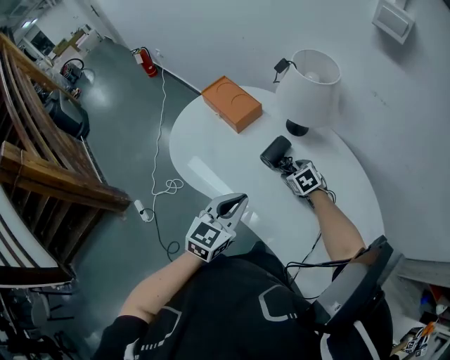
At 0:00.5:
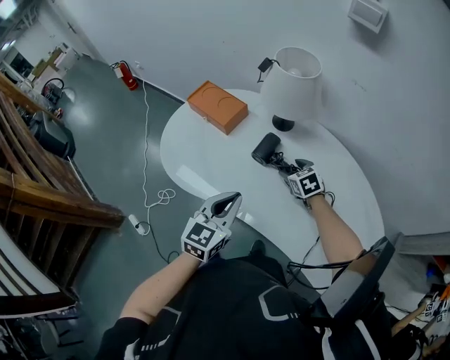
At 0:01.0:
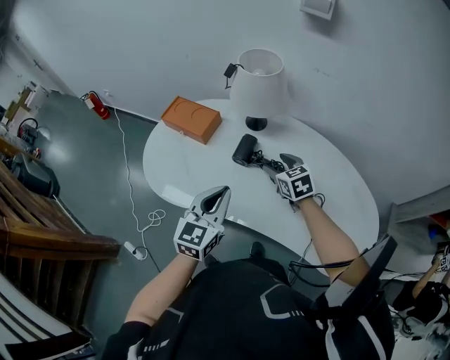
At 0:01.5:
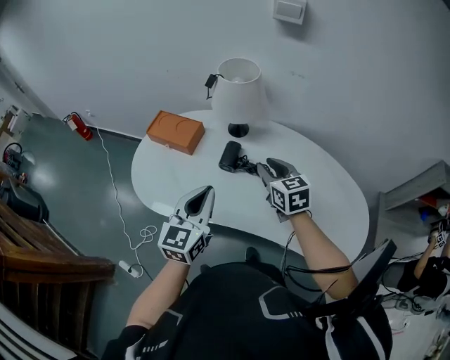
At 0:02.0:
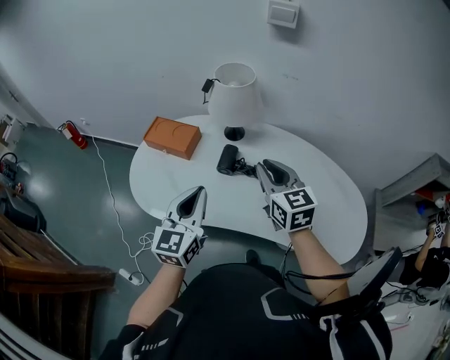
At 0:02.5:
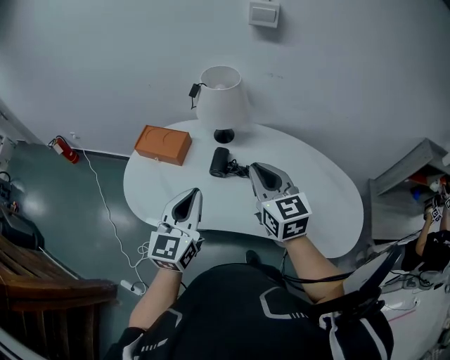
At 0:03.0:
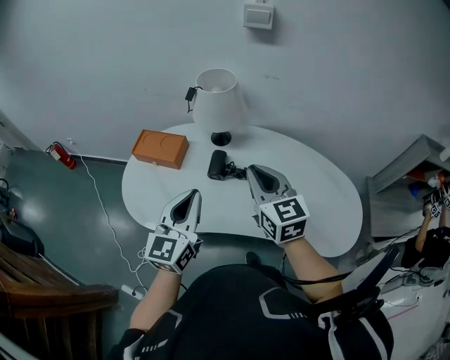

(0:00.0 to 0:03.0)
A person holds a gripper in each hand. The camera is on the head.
0:00.0 - 0:01.5: The left gripper heads upward, covering some 10 cm. Meanwhile the right gripper goes some 25 cm upward, points its fingers some 30 degrees further upward, and closes.
0:01.5 - 0:03.0: The right gripper travels upward and backward by roughly 15 cm.

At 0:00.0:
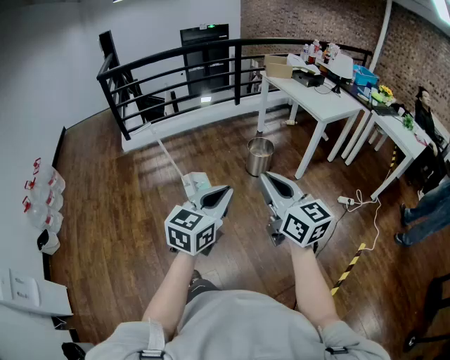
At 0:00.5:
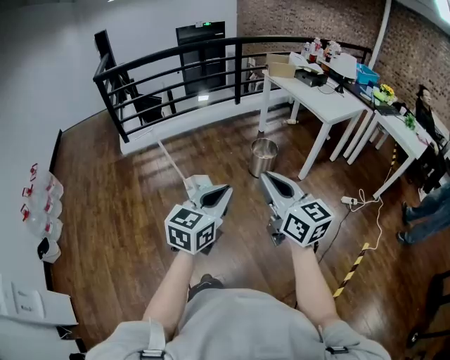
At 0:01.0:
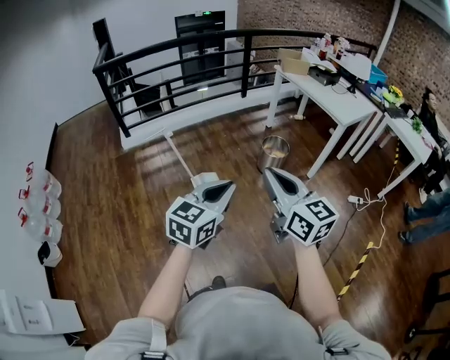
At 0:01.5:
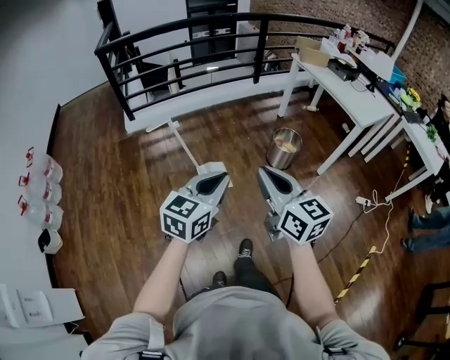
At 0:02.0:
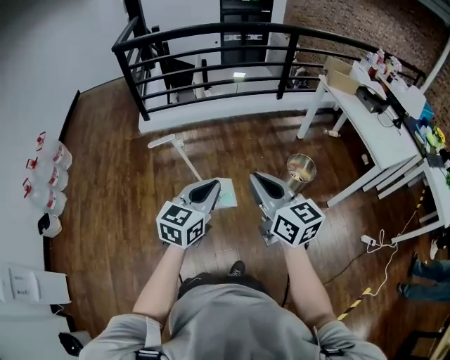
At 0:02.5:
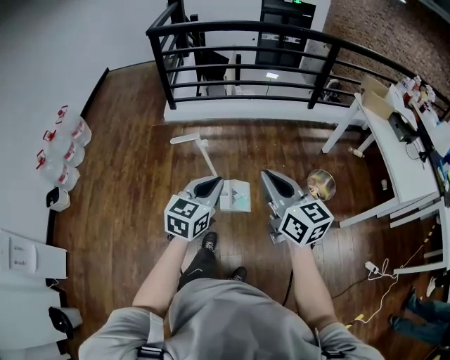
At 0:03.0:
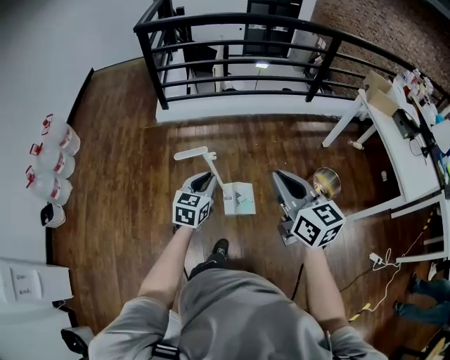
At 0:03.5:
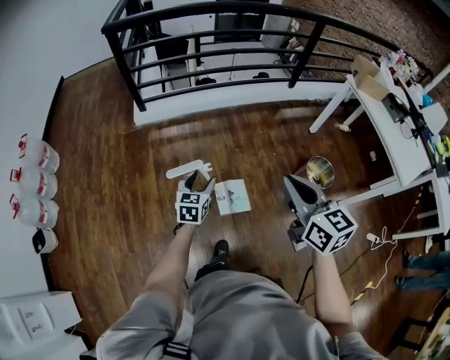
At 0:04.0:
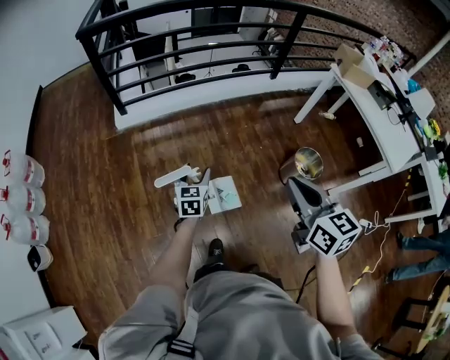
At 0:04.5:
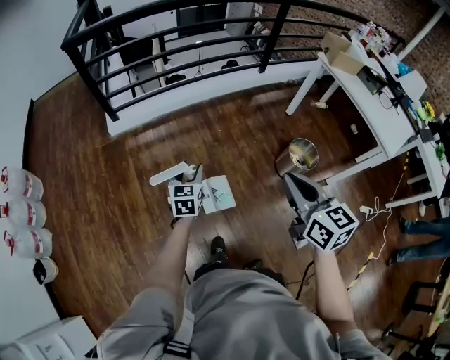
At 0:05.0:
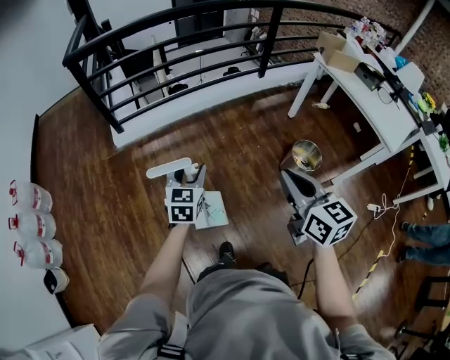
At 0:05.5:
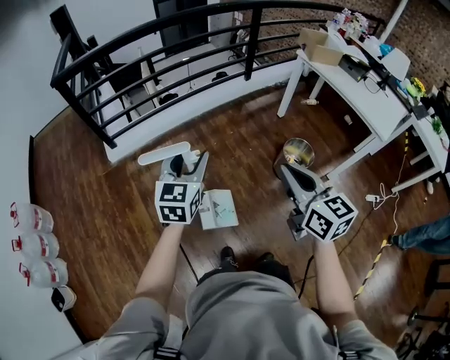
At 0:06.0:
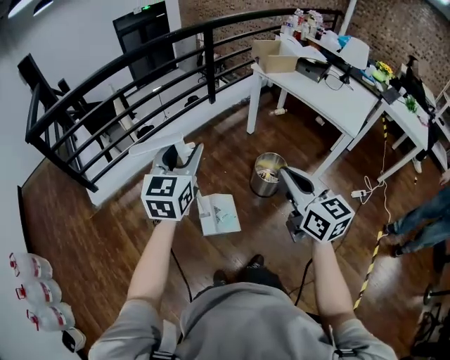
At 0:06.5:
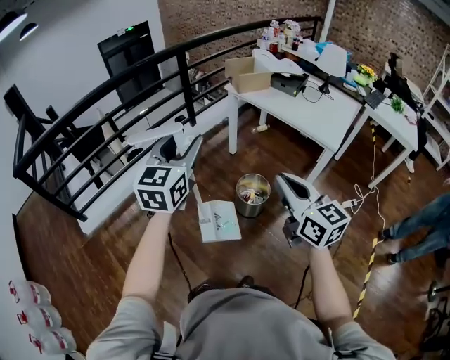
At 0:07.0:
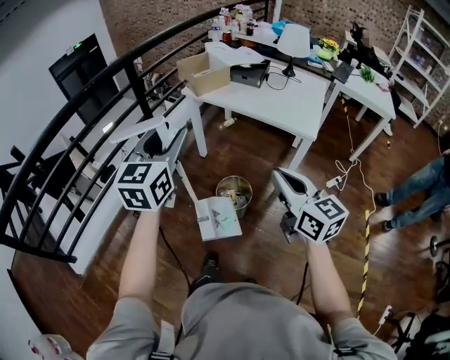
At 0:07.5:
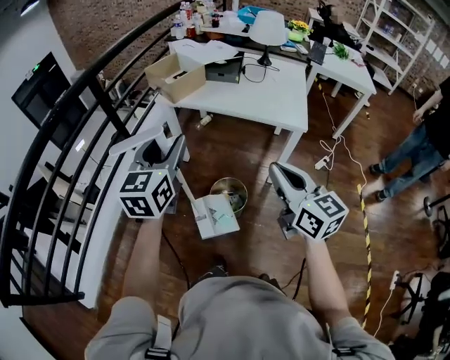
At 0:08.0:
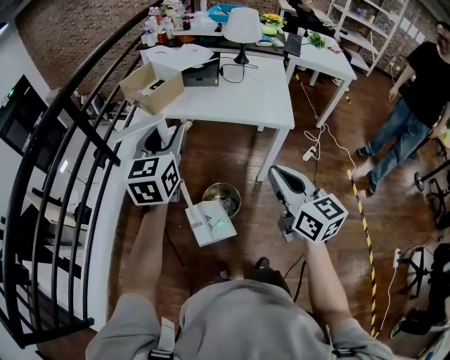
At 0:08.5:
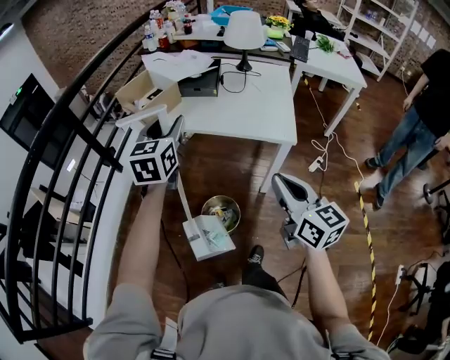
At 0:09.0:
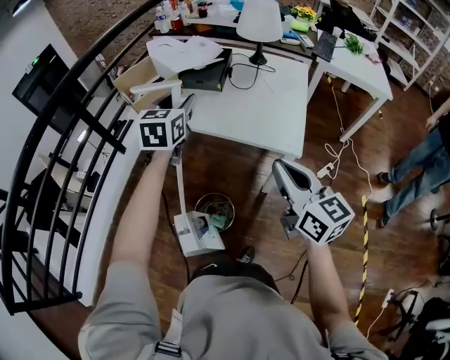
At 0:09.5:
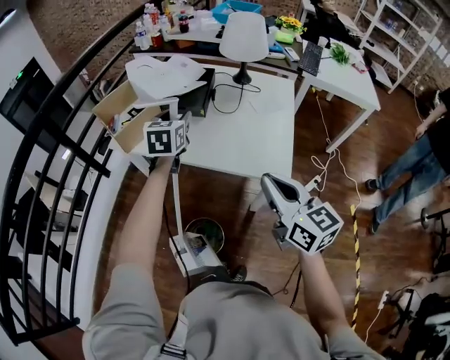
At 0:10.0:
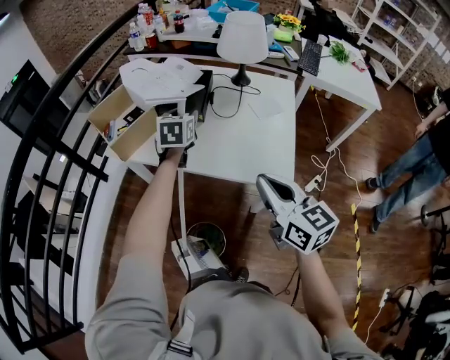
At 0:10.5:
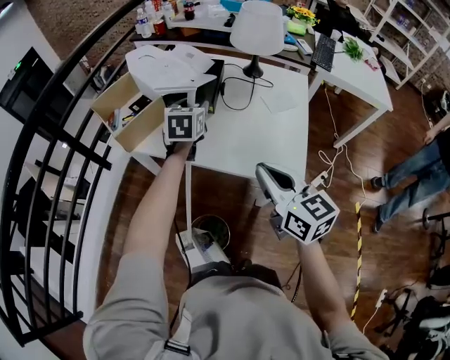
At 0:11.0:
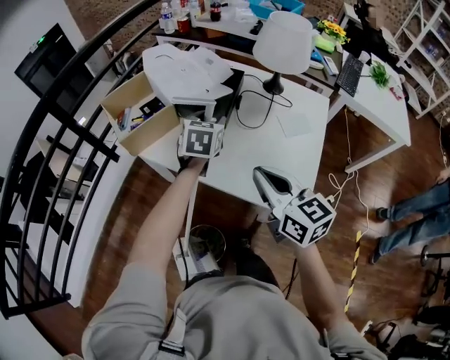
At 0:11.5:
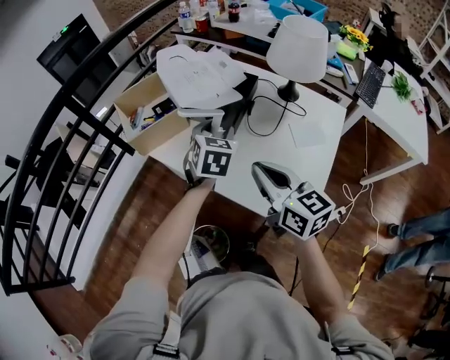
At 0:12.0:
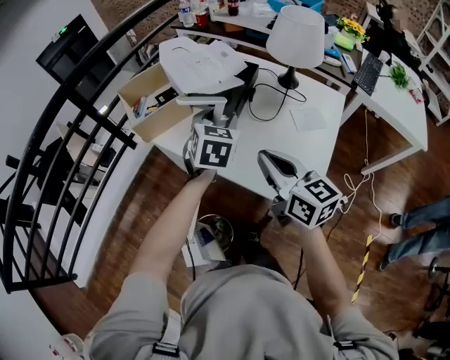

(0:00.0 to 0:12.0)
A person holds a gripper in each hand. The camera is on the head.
0:00.0 - 0:02.0: The two grippers travel together, forward and to the left, roughly 40 cm.
0:02.0 - 0:04.0: The right gripper moves forward, roughly 20 cm, and swivels roughly 20 degrees; the left gripper travels forward, downward and to the left by about 40 cm, changes its angle by approximately 20 degrees, and opens up.
0:04.0 - 0:06.0: The right gripper is displaced to the right by approximately 20 cm, and turns by roughly 20 degrees, while the left gripper moves upward and to the right, approximately 40 cm, and rotates about 40 degrees.
0:06.0 - 0:08.0: The right gripper shifts by roughly 30 cm, and swivels roughly 40 degrees, while the left gripper shifts by about 50 cm, and turns by about 30 degrees.
0:08.0 - 0:10.0: Both grippers travel together forward and to the right, about 40 cm. The left gripper turns by about 20 degrees.
0:10.0 - 0:12.0: The right gripper heads forward, covering about 15 cm.

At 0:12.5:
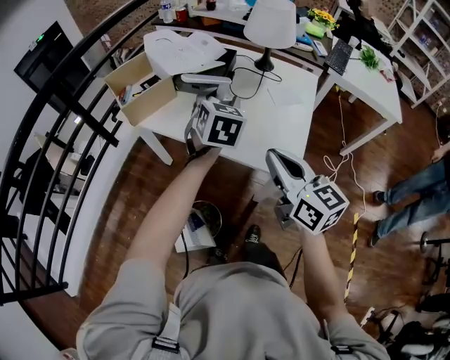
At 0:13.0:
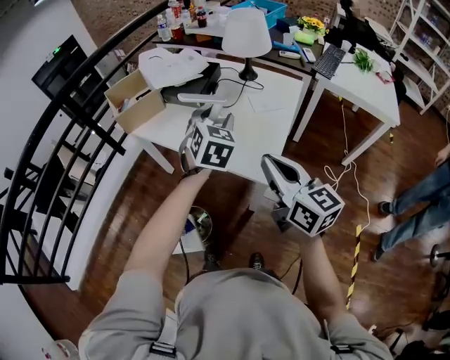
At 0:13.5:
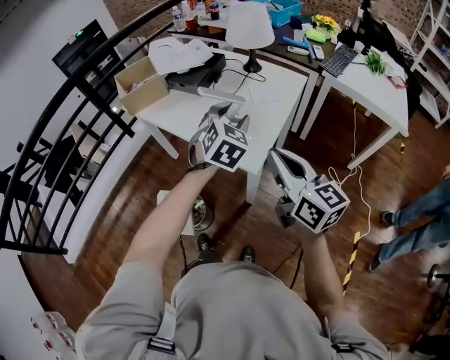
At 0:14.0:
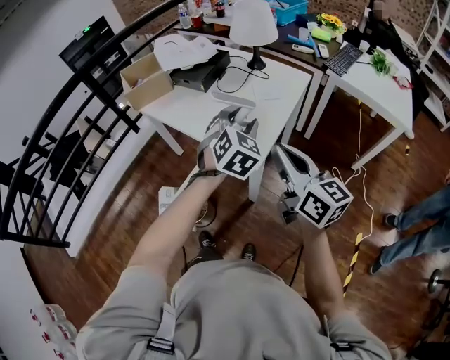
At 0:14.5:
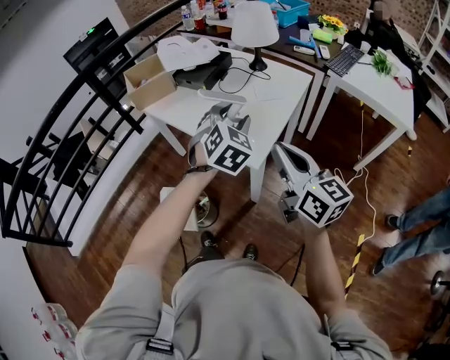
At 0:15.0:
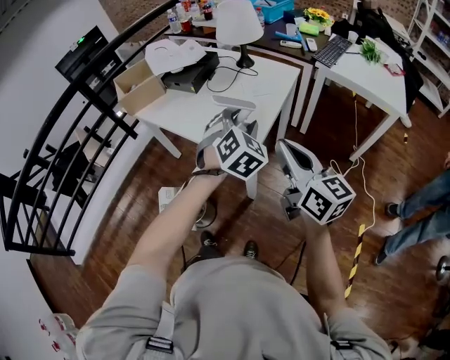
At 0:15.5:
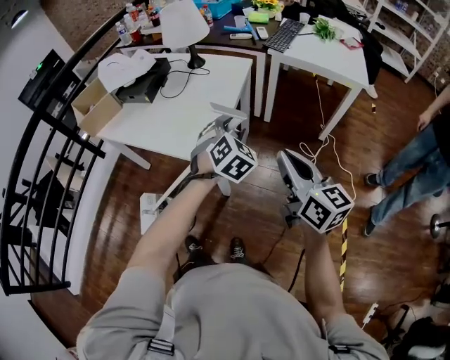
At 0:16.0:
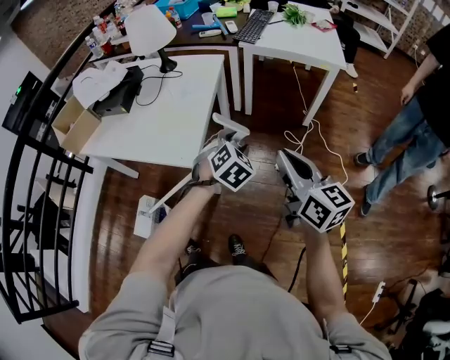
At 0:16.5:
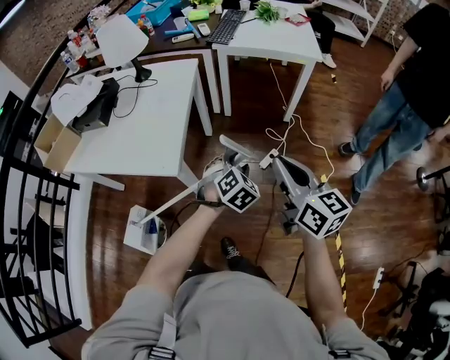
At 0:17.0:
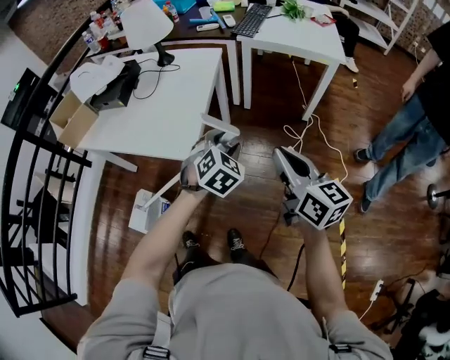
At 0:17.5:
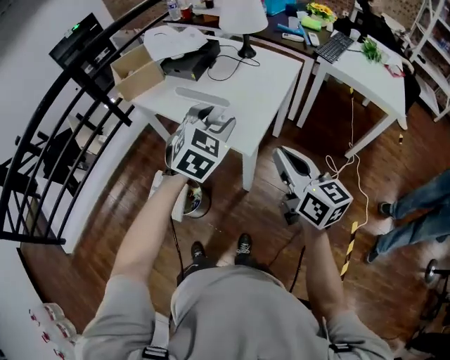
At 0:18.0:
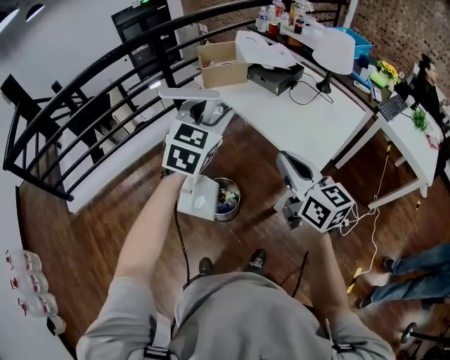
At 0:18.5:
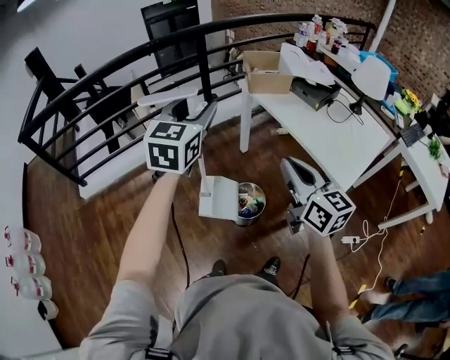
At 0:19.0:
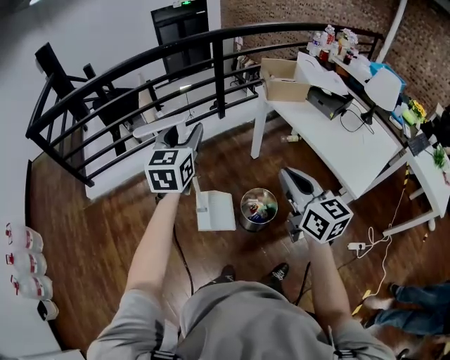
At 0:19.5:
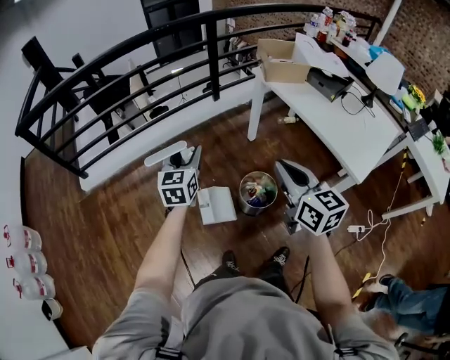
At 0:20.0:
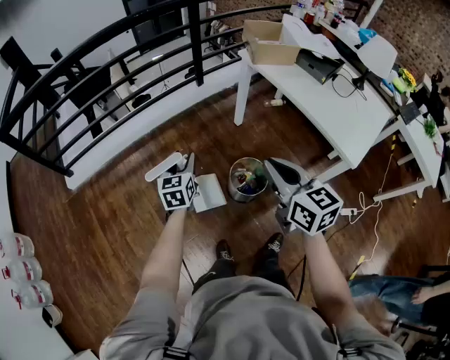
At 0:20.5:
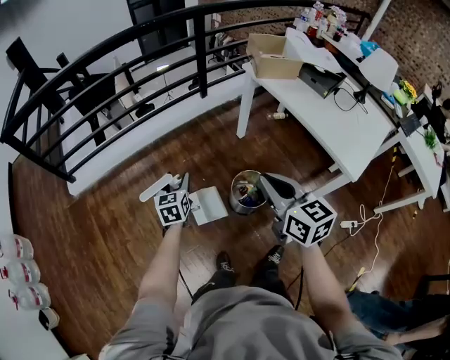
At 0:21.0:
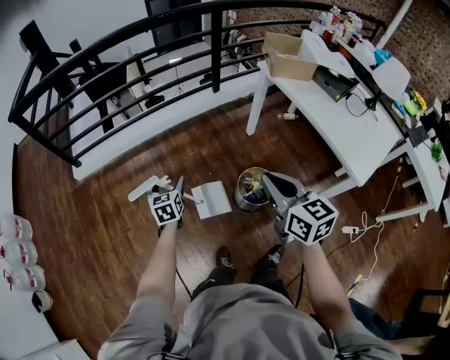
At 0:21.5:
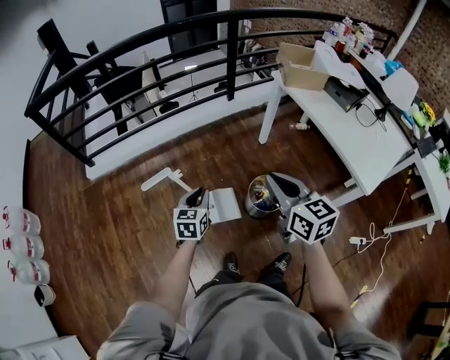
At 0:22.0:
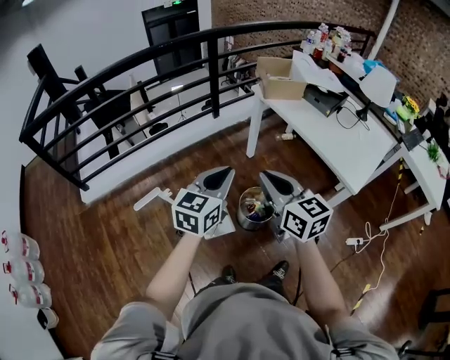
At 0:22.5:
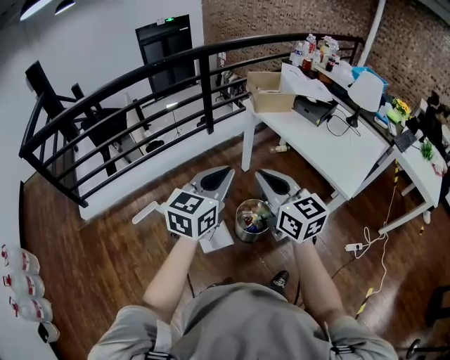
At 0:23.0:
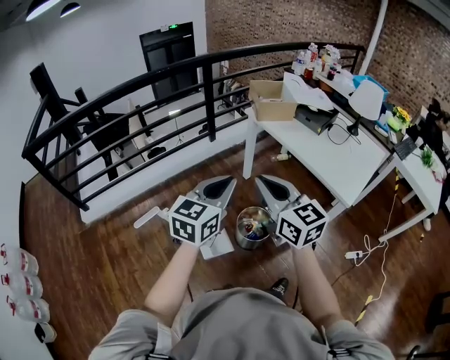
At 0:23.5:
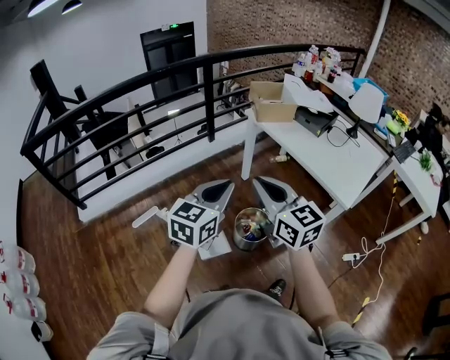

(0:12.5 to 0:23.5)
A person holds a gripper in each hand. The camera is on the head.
0:12.5 - 0:14.5: The left gripper is displaced backward and to the right by some 25 cm, and changes its angle by approximately 20 degrees; the right gripper moves to the right and backward, some 25 cm.
0:14.5 - 0:16.0: The right gripper changes place by approximately 20 cm, and changes its angle by about 30 degrees. Meanwhile the left gripper shifts by approximately 30 cm, and turns by some 30 degrees.
0:16.0 - 0:18.0: Both grippers are carried approximately 50 cm. The left gripper changes its angle by approximately 50 degrees, while the right gripper swivels approximately 40 degrees.
0:18.0 - 0:20.0: The left gripper shifts some 50 cm to the left and downward, and turns by roughly 40 degrees; the right gripper heads to the left, covering approximately 30 cm.
0:20.0 - 0:21.5: The left gripper shifts approximately 10 cm backward and to the left, and opens and closes again, while the right gripper shifts some 5 cm to the left.
0:21.5 - 0:23.5: The left gripper moves upward and to the right, some 30 cm, and swivels about 30 degrees; the right gripper shifts about 10 cm upward.
